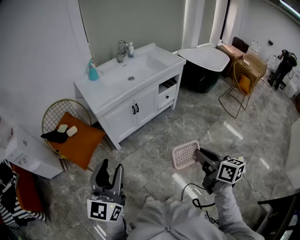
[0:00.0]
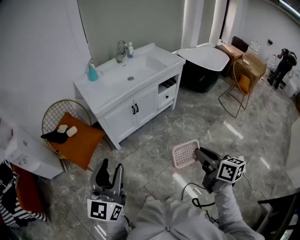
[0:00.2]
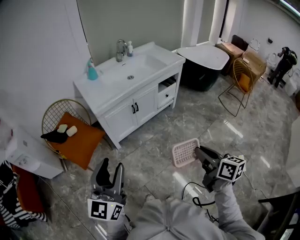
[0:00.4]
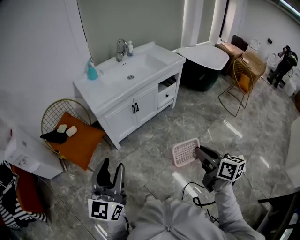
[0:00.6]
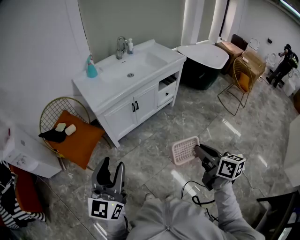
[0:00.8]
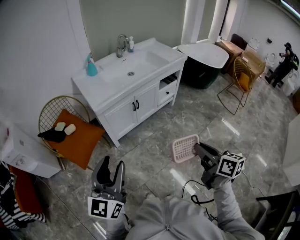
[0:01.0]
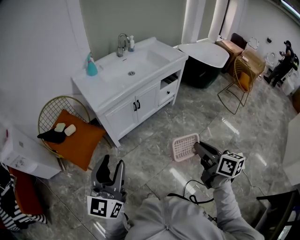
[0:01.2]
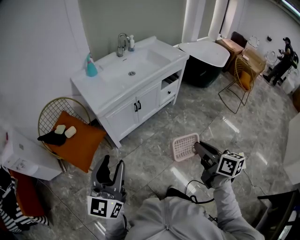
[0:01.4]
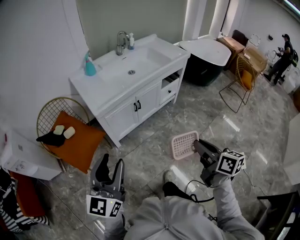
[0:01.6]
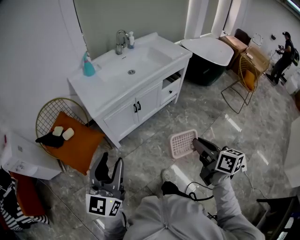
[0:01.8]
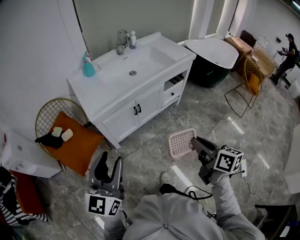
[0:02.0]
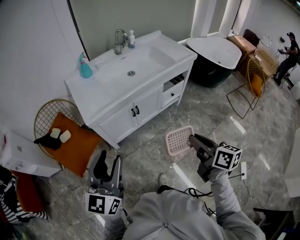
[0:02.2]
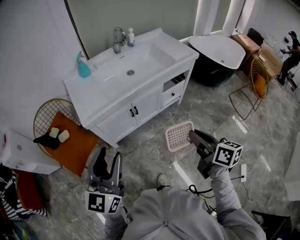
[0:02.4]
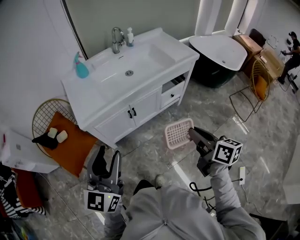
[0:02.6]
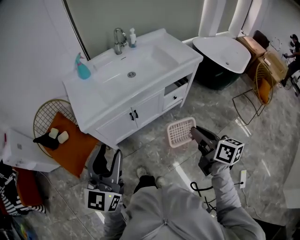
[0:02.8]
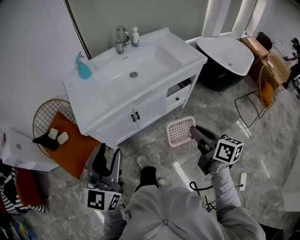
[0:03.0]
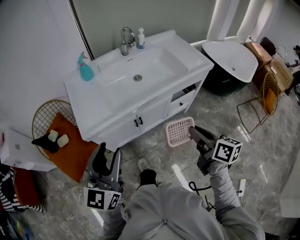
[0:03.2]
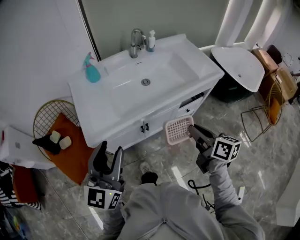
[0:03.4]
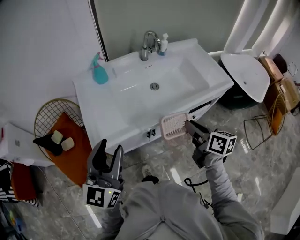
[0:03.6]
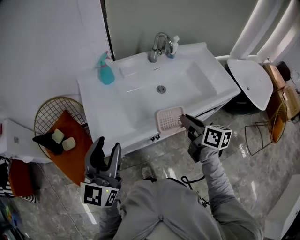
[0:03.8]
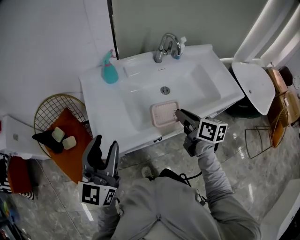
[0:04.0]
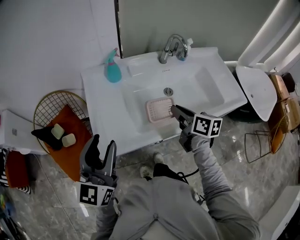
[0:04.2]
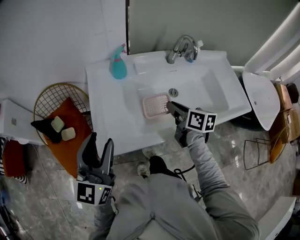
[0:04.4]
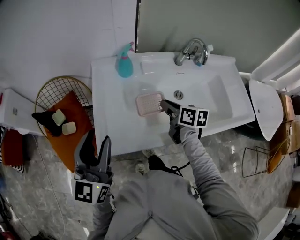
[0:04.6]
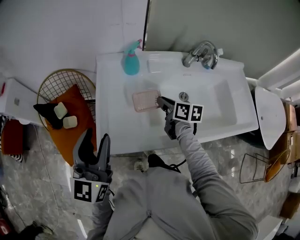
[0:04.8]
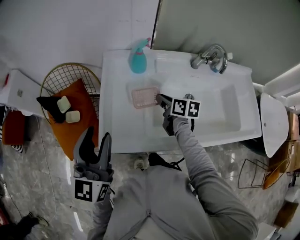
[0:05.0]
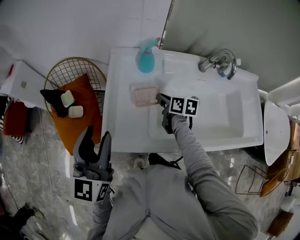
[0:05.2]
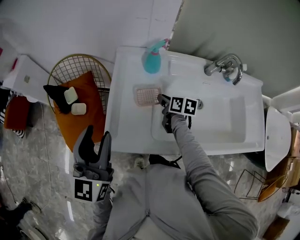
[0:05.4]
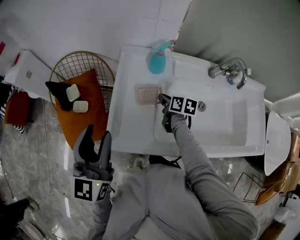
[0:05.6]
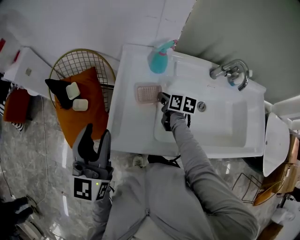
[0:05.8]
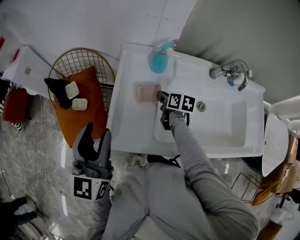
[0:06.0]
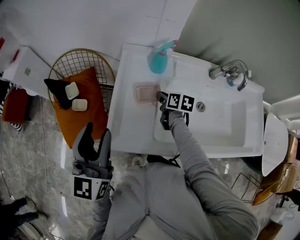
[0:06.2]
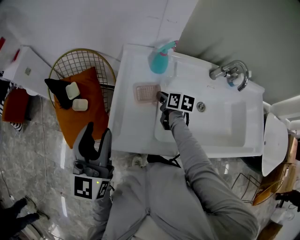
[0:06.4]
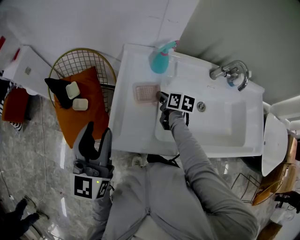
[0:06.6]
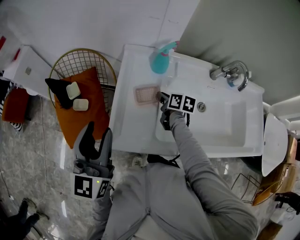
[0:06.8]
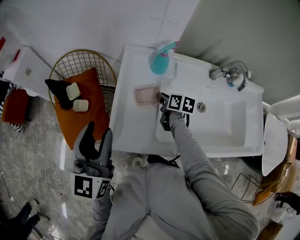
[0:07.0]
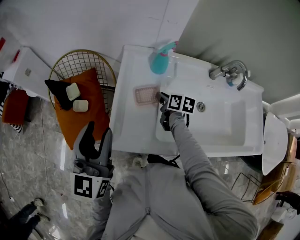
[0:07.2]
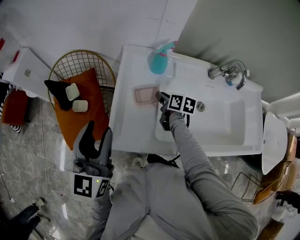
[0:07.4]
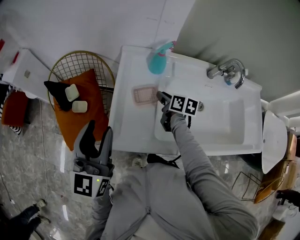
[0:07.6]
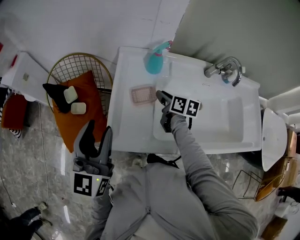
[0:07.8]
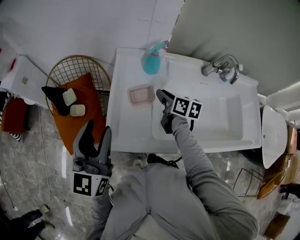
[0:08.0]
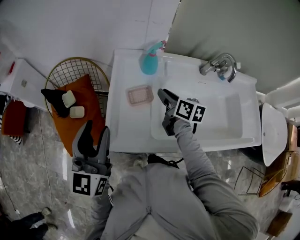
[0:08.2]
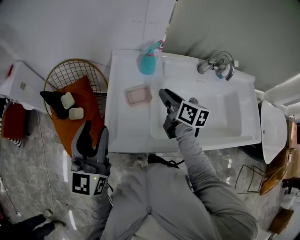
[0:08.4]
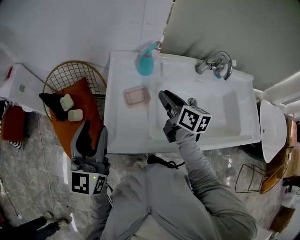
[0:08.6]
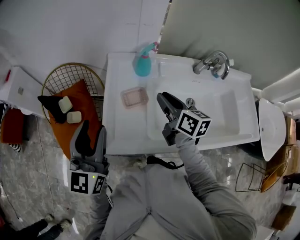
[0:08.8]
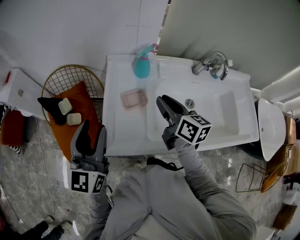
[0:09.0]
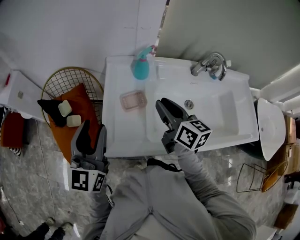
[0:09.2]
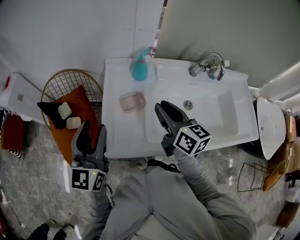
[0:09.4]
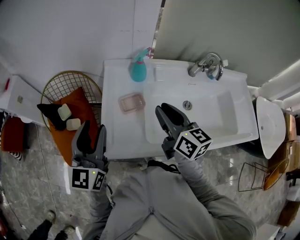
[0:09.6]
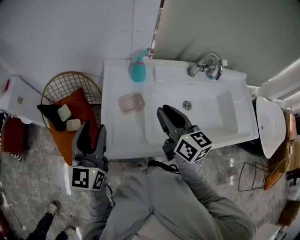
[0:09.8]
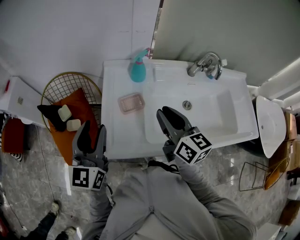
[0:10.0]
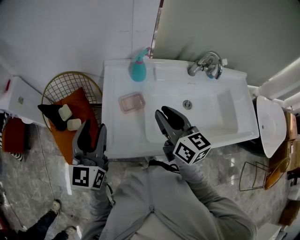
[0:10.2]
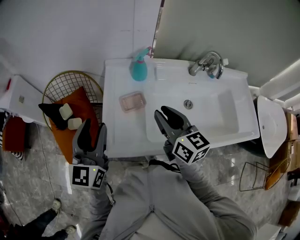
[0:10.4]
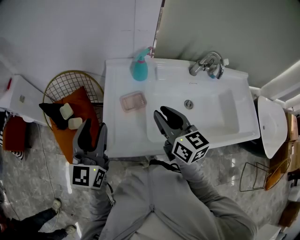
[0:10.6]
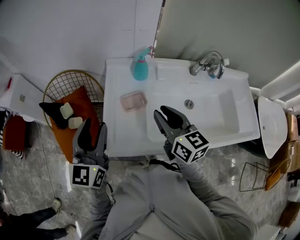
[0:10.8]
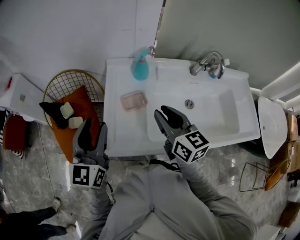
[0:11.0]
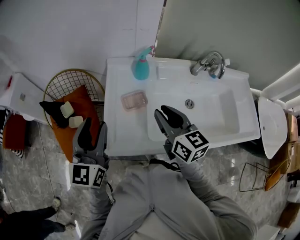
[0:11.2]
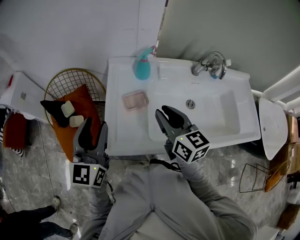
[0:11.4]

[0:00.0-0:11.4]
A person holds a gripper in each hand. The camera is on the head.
0:00.0 to 0:01.4: The two grippers go about 5 cm forward.
0:01.4 to 0:02.8: The two grippers go some 25 cm forward and to the right.
0:02.8 to 0:04.2: The left gripper goes approximately 30 cm forward and to the left, while the right gripper goes roughly 50 cm forward and to the left.
0:04.2 to 0:05.6: The left gripper heads to the left and forward, covering approximately 10 cm, and swivels roughly 30 degrees; the right gripper shifts approximately 30 cm forward, downward and to the left, and turns by about 30 degrees.
0:05.6 to 0:07.2: There are only small adjustments of the grippers.
0:07.2 to 0:08.6: The right gripper is displaced upward by approximately 15 cm, and turns by roughly 20 degrees.
0:08.6 to 0:10.0: The right gripper moves backward and upward, some 10 cm.
0:10.0 to 0:11.4: The grippers stay close to where they were, moving slightly.

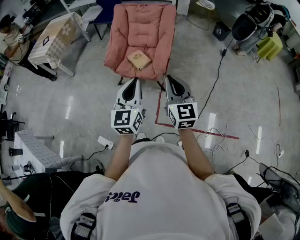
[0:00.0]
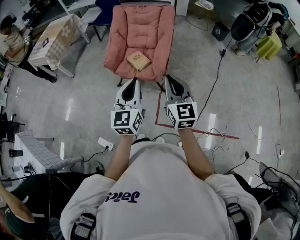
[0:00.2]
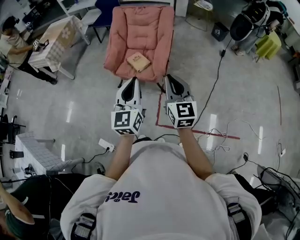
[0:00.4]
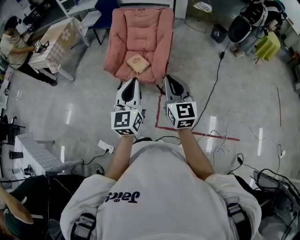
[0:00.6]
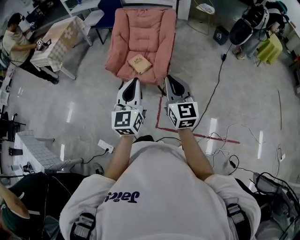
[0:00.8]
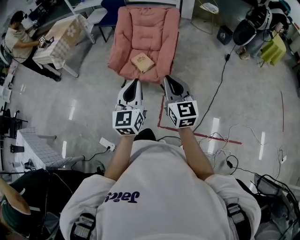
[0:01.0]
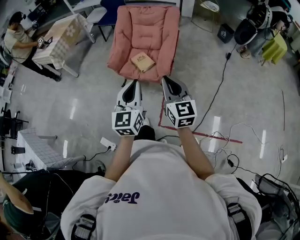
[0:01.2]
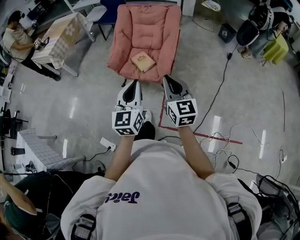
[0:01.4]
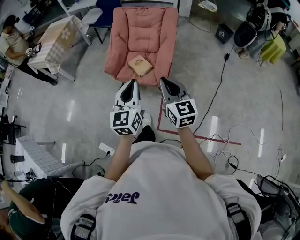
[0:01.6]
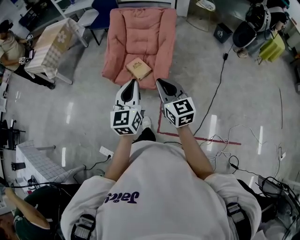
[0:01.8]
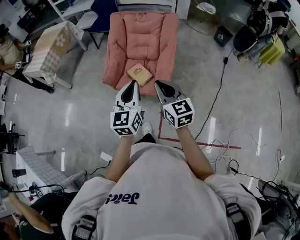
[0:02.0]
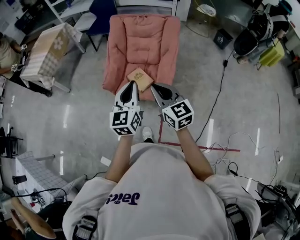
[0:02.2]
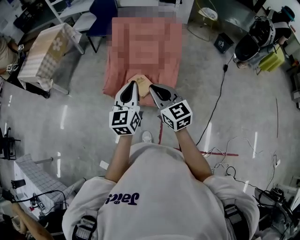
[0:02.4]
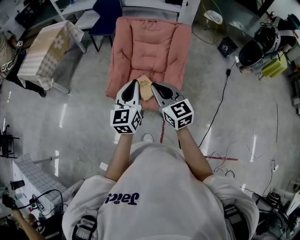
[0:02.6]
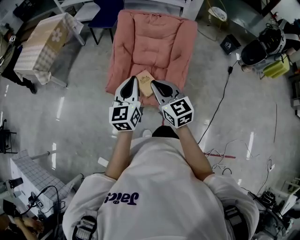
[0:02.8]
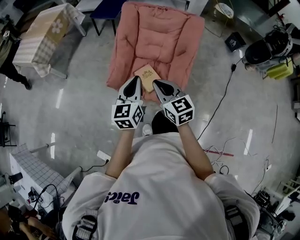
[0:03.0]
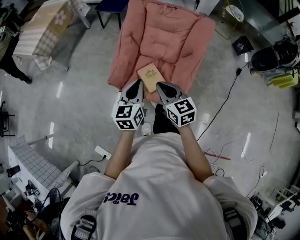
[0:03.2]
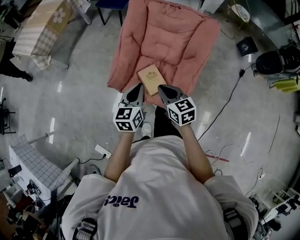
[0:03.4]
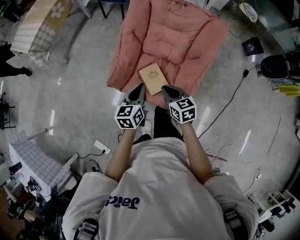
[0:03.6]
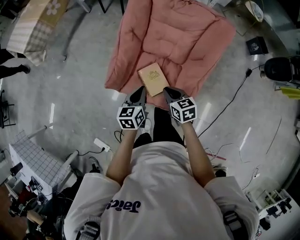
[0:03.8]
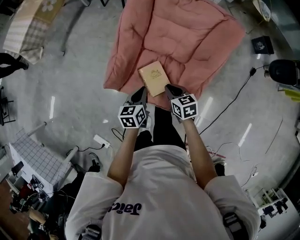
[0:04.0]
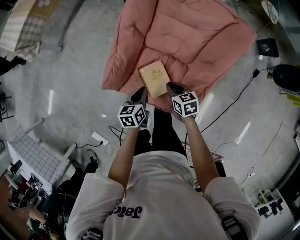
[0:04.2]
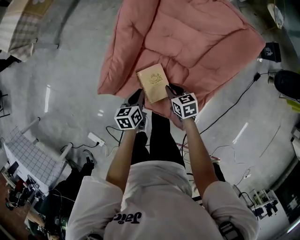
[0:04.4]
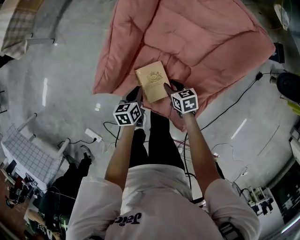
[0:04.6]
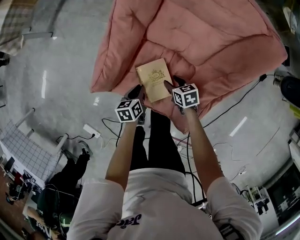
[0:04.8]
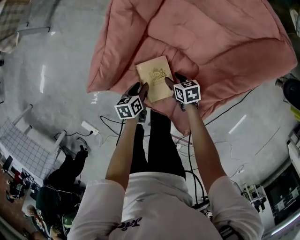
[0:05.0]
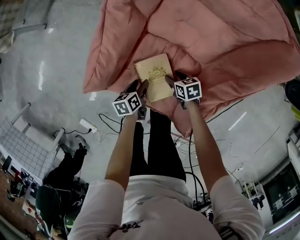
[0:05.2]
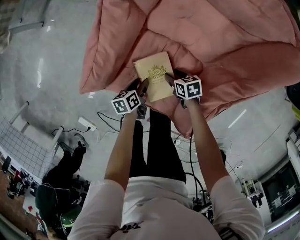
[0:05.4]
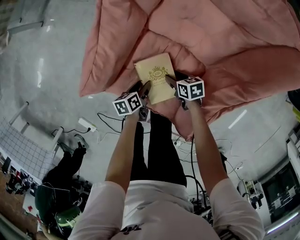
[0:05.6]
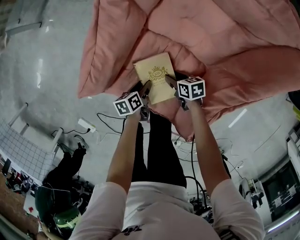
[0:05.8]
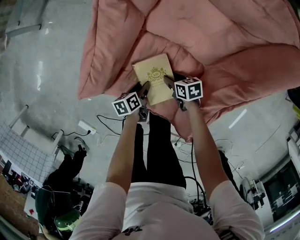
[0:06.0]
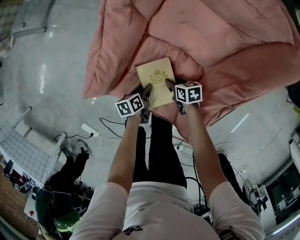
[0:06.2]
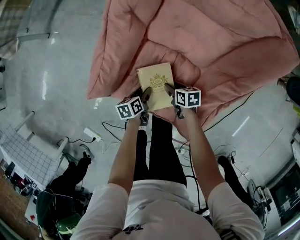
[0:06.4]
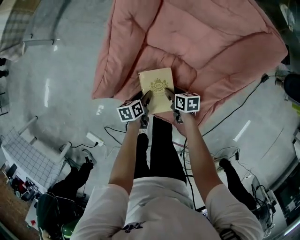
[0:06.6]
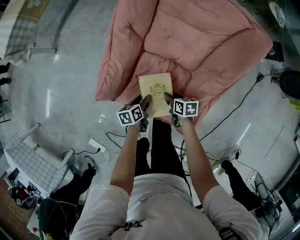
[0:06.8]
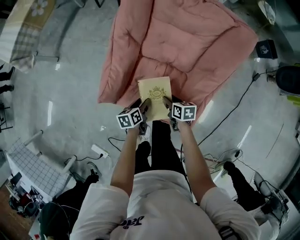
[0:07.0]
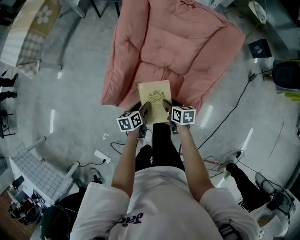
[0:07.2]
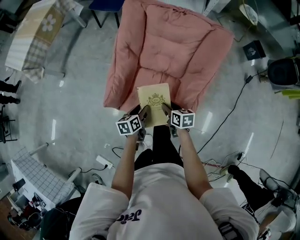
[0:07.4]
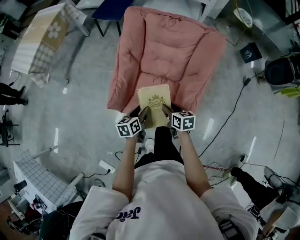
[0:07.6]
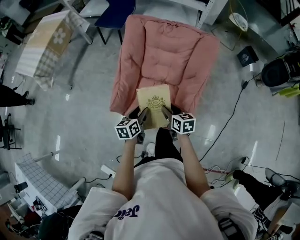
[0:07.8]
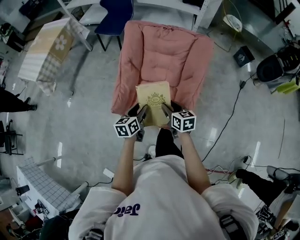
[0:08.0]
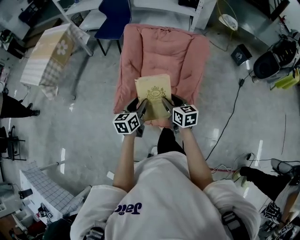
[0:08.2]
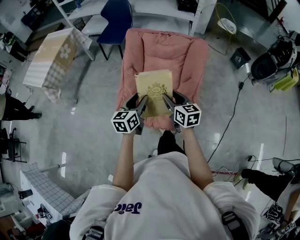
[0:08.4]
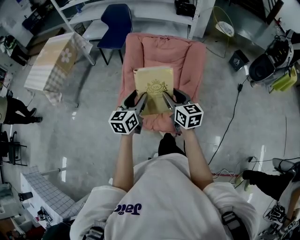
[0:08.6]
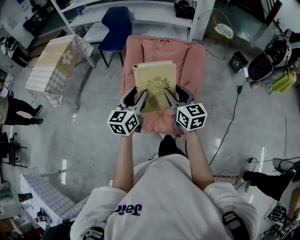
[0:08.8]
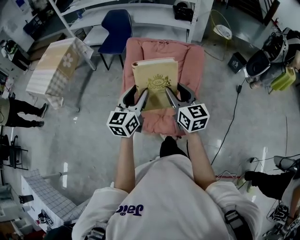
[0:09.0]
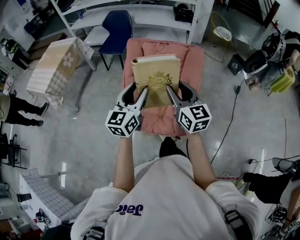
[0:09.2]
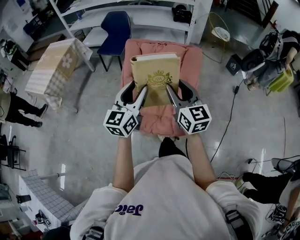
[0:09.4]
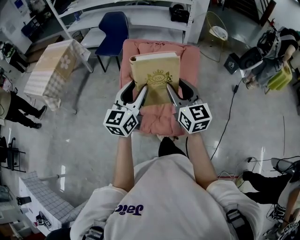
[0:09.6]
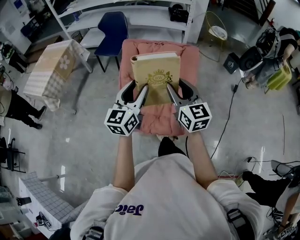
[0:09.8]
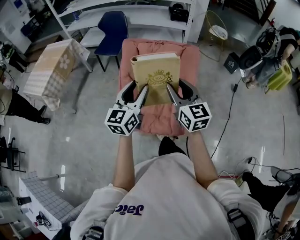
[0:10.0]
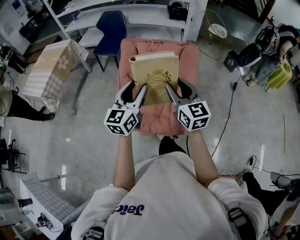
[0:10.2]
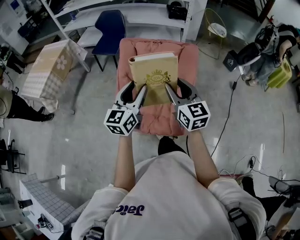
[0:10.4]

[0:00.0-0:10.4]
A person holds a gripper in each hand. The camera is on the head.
0:00.0 to 0:01.4: The right gripper shifts by roughly 5 cm.
0:01.4 to 0:03.0: Both grippers travel together forward, about 35 cm. The right gripper changes its angle by about 20 degrees.
0:03.0 to 0:04.4: Both grippers move downward and forward, some 40 cm. The right gripper points its fingers approximately 30 degrees further downward. Meanwhile the left gripper tips its fingers downward by about 30 degrees.
0:04.4 to 0:06.0: Both grippers travel together downward, approximately 20 cm. The left gripper changes its angle by some 30 degrees, and opens up, while the right gripper swivels about 20 degrees, and opens.
0:06.0 to 0:07.4: The grippers both shift upward by approximately 30 cm. The left gripper rotates some 30 degrees. The right gripper turns by about 30 degrees.
0:07.4 to 0:09.0: Both grippers move upward, some 40 cm. The right gripper angles its fingers upward, by approximately 40 degrees, while the left gripper tips its fingers upward by approximately 40 degrees.
0:09.0 to 0:10.4: The grippers move only a little.

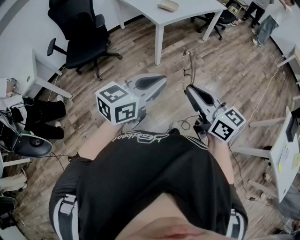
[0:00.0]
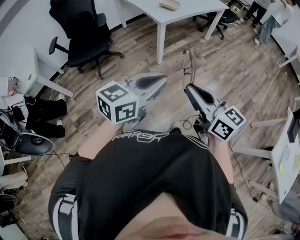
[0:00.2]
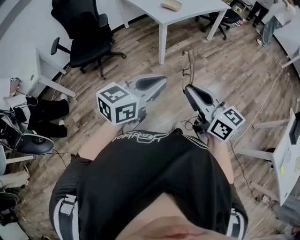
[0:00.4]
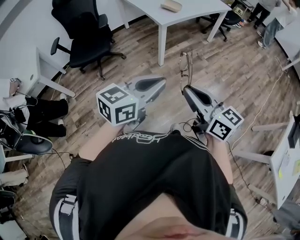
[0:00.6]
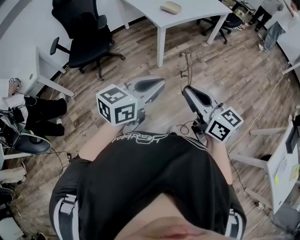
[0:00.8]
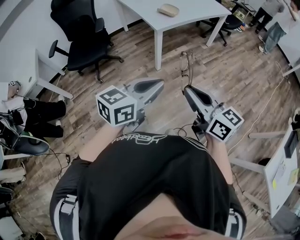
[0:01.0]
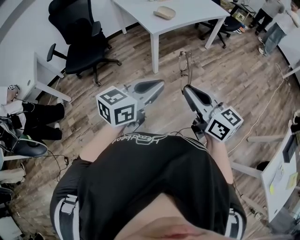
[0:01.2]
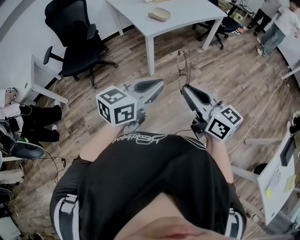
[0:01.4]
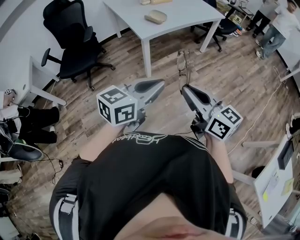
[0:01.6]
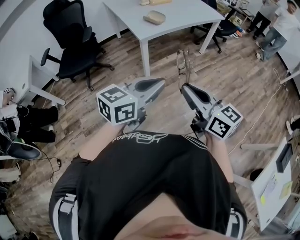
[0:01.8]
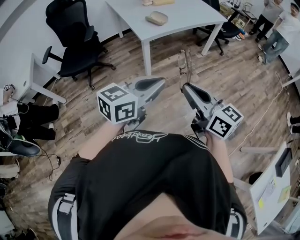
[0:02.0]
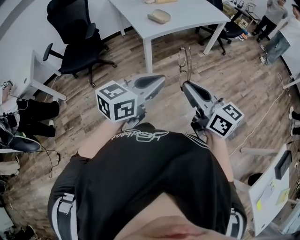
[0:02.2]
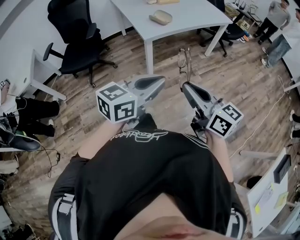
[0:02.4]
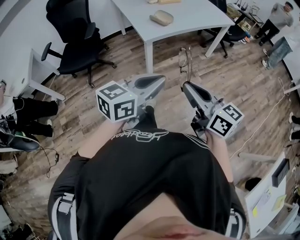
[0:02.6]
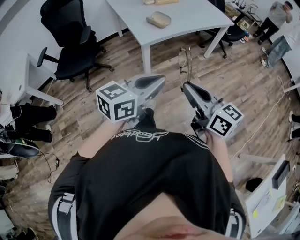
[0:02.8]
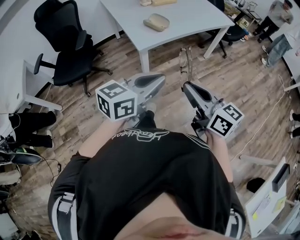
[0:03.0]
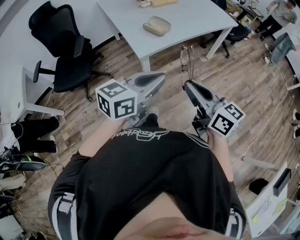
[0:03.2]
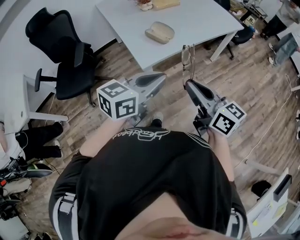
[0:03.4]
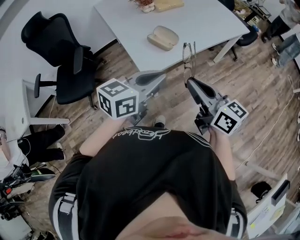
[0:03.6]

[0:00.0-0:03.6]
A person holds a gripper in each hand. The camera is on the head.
0:00.0 to 0:01.8: The right gripper shifts roughly 25 cm forward and to the right. Meanwhile the left gripper heads to the right and forward, covering roughly 25 cm.
0:01.8 to 0:03.6: Both grippers are carried forward, approximately 40 cm.
